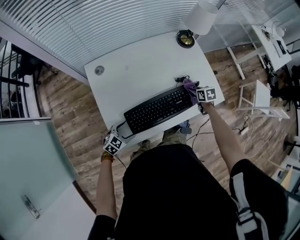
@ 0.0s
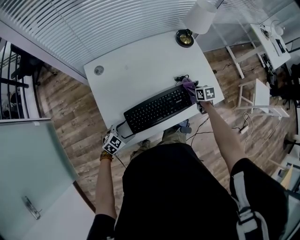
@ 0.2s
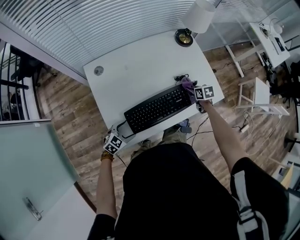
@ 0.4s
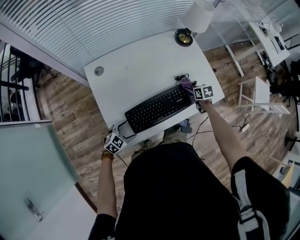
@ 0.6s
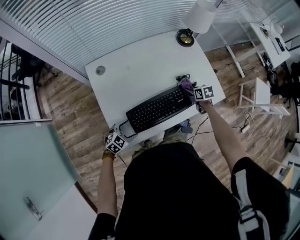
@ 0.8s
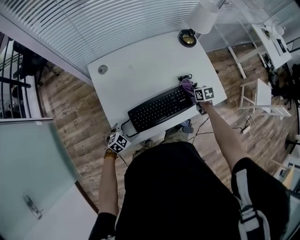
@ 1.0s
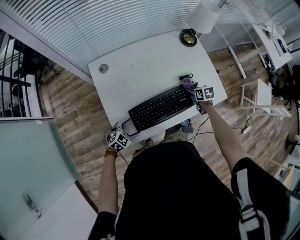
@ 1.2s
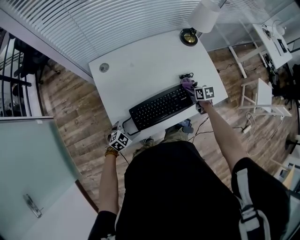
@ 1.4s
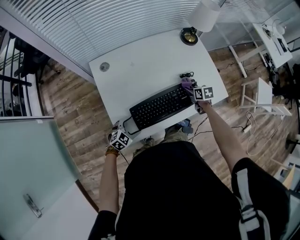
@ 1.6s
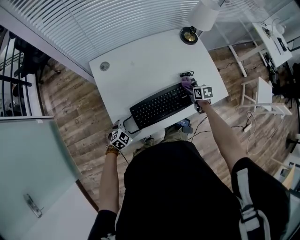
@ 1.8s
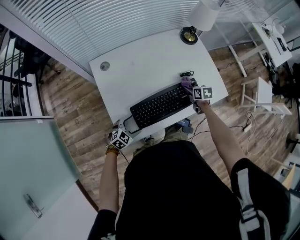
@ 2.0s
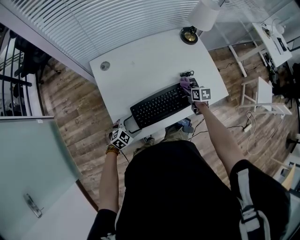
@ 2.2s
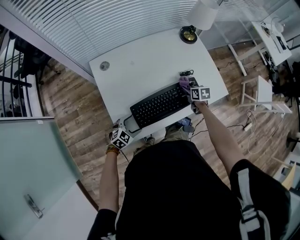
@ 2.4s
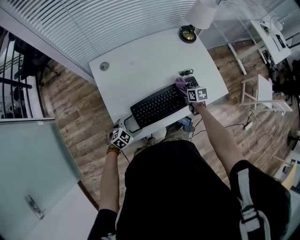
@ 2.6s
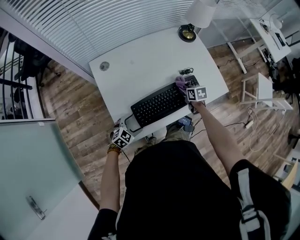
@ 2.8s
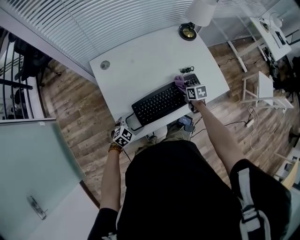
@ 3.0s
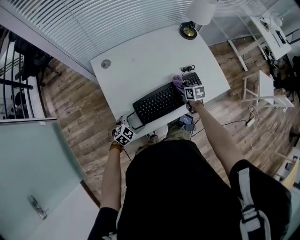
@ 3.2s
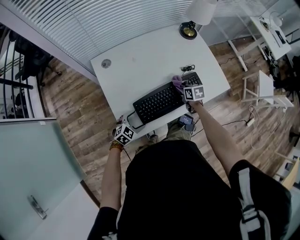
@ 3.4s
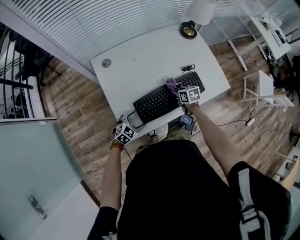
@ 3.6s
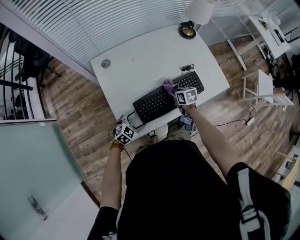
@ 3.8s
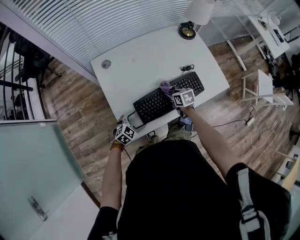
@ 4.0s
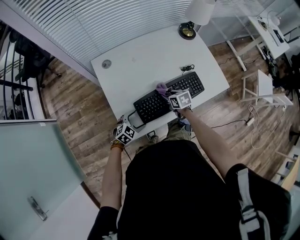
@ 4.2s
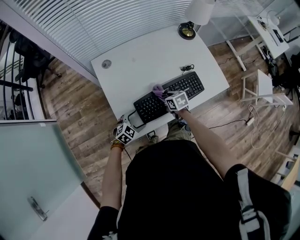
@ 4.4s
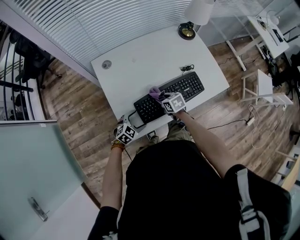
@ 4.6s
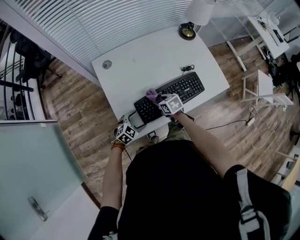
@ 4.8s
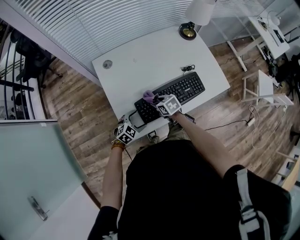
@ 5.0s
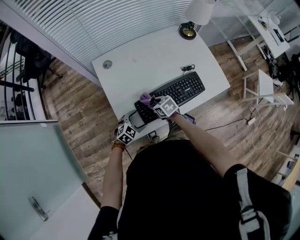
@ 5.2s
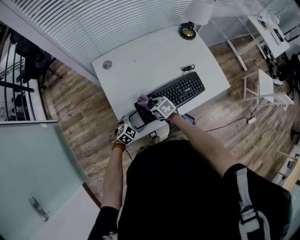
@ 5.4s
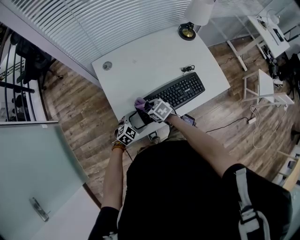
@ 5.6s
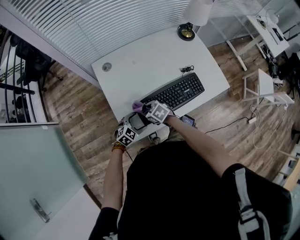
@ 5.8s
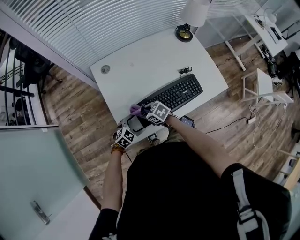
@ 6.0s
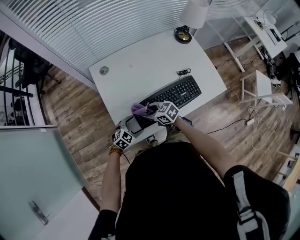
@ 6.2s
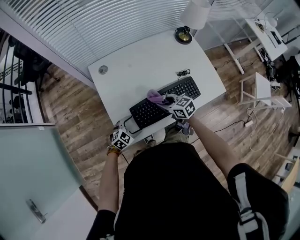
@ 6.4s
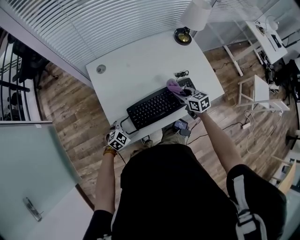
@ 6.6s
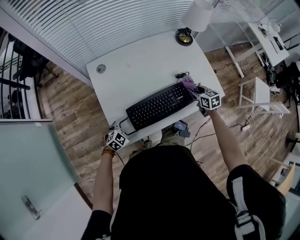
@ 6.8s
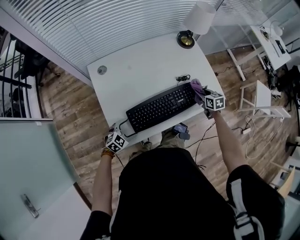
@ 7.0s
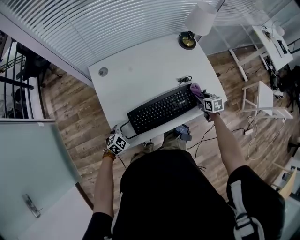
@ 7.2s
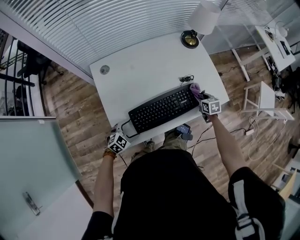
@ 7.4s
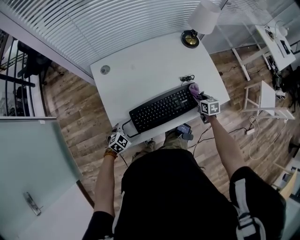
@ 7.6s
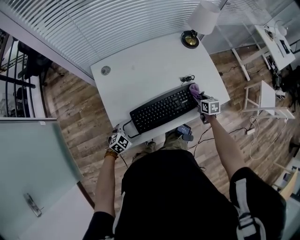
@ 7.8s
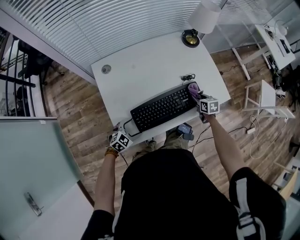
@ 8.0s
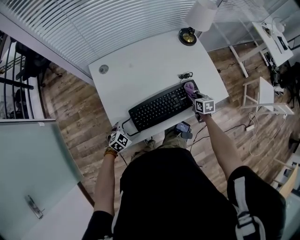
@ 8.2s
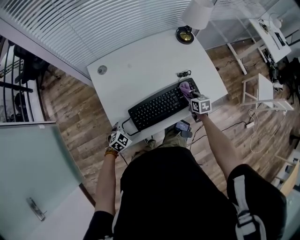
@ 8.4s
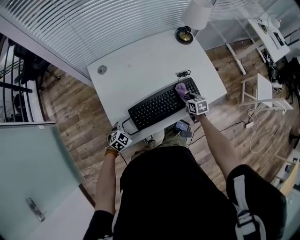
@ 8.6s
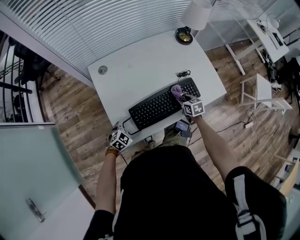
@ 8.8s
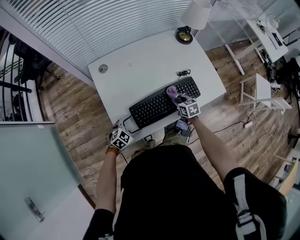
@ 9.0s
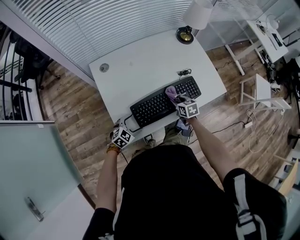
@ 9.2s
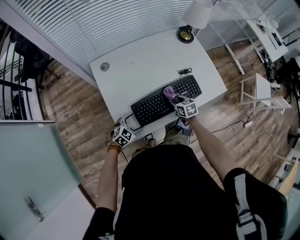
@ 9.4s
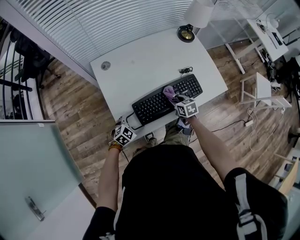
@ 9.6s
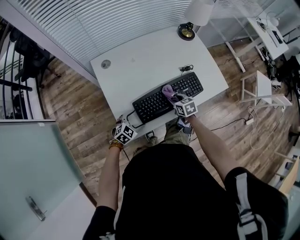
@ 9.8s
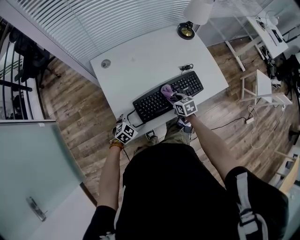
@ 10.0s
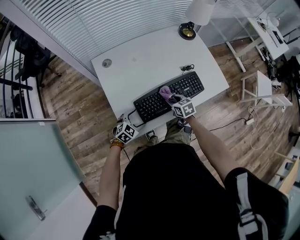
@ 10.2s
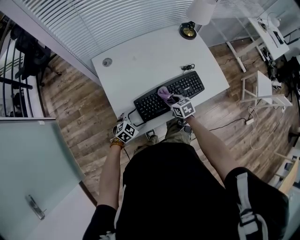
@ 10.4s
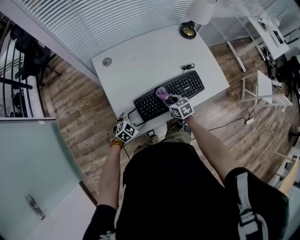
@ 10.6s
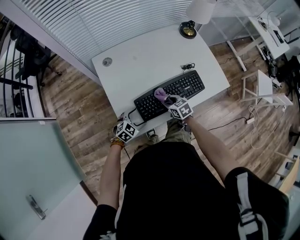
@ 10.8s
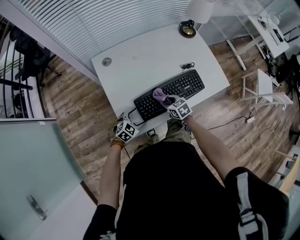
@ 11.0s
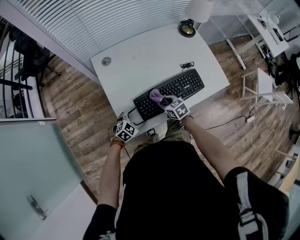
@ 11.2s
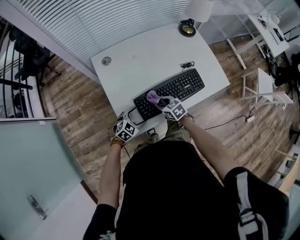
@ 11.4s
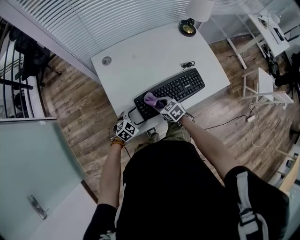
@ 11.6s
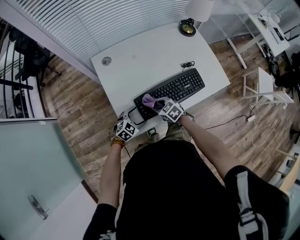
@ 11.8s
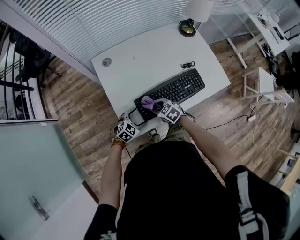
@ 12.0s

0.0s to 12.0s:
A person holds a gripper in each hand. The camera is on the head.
0.0s to 1.6s: The right gripper moves approximately 5 cm.
1.6s to 3.0s: The right gripper ends up about 5 cm from where it was.
3.0s to 4.4s: The right gripper travels to the left and backward by roughly 15 cm.
4.4s to 6.0s: The right gripper changes place by approximately 15 cm, and turns by roughly 30 degrees.
6.0s to 7.6s: The right gripper moves some 40 cm, and swivels approximately 40 degrees.
7.6s to 9.0s: The right gripper moves to the left and backward, roughly 15 cm.
9.0s to 10.4s: The right gripper moves to the left and backward, roughly 10 cm.
10.4s to 12.0s: The right gripper moves to the left and backward, some 10 cm, and swivels approximately 30 degrees.

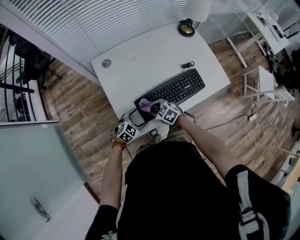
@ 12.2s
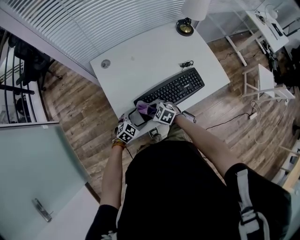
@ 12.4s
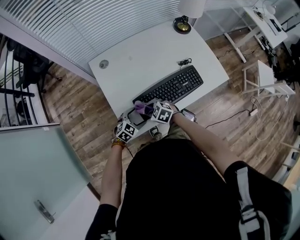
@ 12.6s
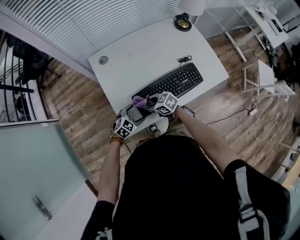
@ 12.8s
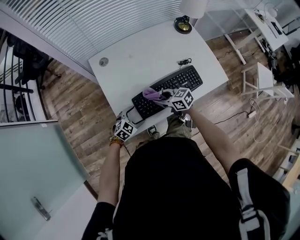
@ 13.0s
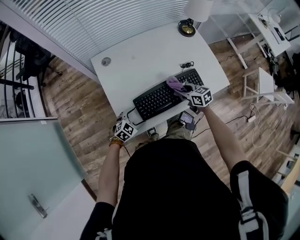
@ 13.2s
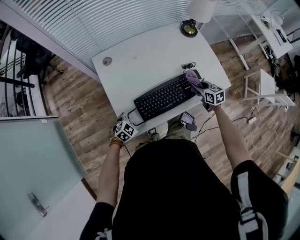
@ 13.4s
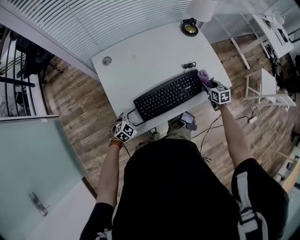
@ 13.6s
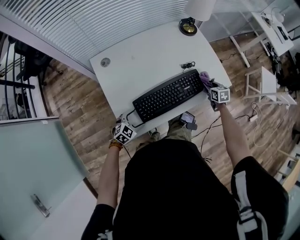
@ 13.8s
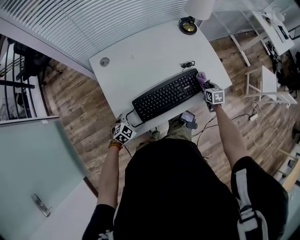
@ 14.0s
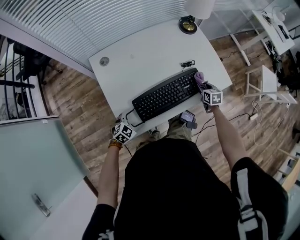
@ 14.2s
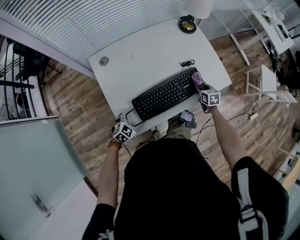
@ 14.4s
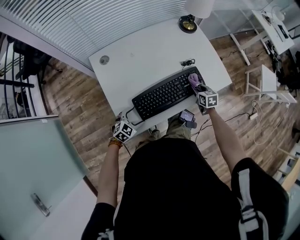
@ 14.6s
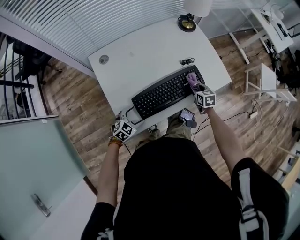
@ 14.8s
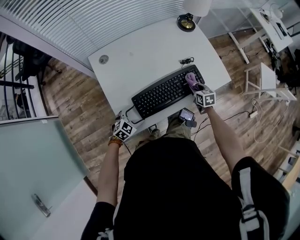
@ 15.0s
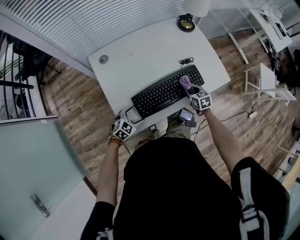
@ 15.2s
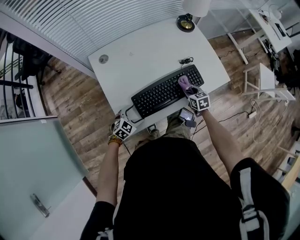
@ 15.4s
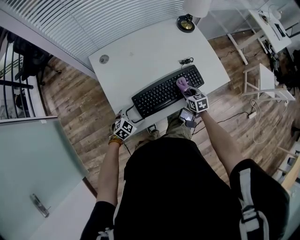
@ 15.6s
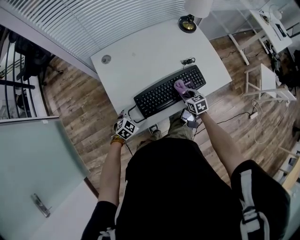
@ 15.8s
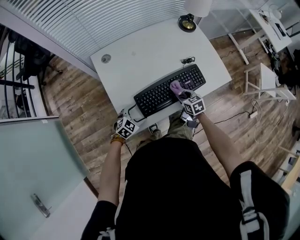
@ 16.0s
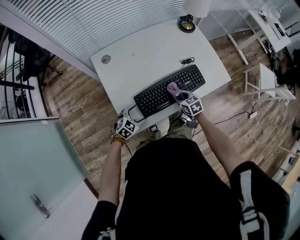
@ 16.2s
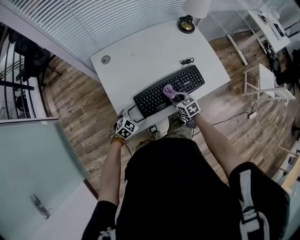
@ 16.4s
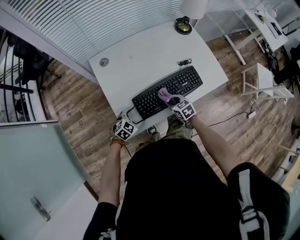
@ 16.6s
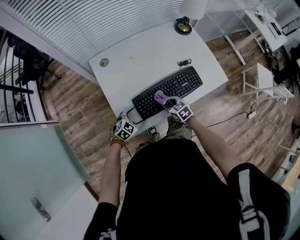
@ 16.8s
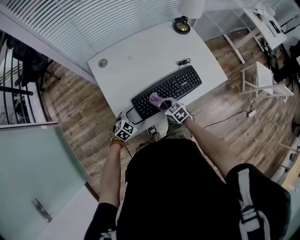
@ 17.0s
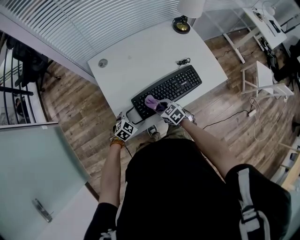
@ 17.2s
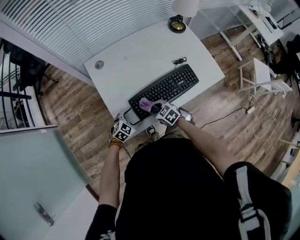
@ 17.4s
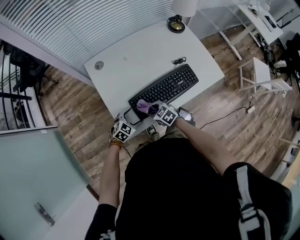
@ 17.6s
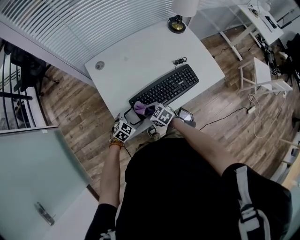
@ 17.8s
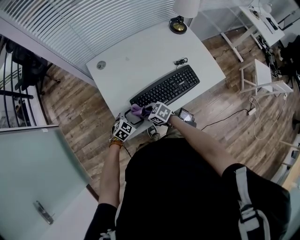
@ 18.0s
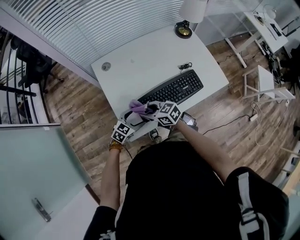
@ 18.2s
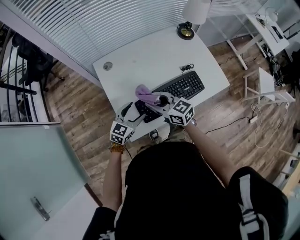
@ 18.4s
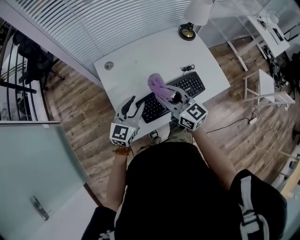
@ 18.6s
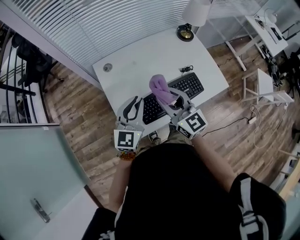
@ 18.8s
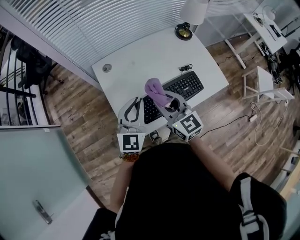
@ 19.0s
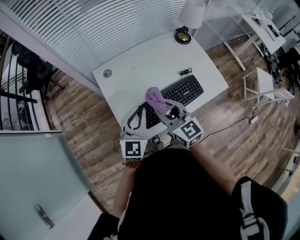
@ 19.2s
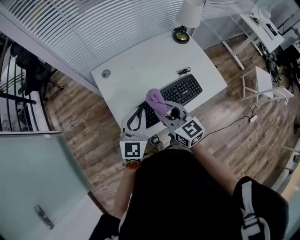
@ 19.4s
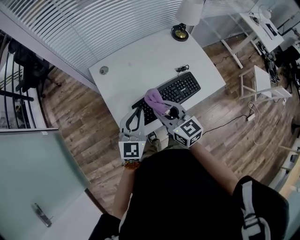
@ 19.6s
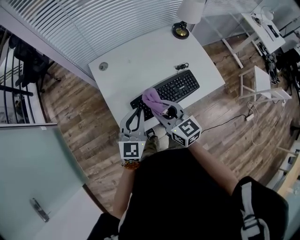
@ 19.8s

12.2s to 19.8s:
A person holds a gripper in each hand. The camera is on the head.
12.2s to 13.8s: The right gripper ends up approximately 40 cm from where it was, and rotates some 50 degrees.
13.8s to 15.2s: The right gripper moves to the left and backward, roughly 15 cm.
15.2s to 16.8s: The right gripper heads to the left and backward, covering approximately 15 cm.
16.8s to 18.2s: The right gripper shifts by about 15 cm, and turns by roughly 30 degrees, while the left gripper heads upward, covering approximately 5 cm.
18.2s to 19.8s: The two grippers go about 20 cm upward. The left gripper changes its angle by approximately 40 degrees, and closes. Meanwhile the right gripper turns by some 30 degrees.

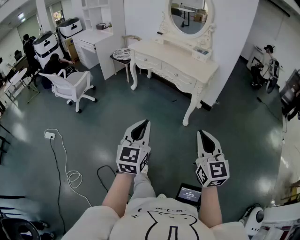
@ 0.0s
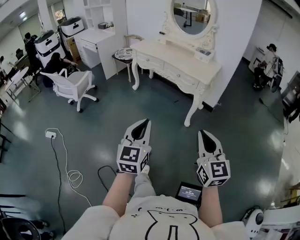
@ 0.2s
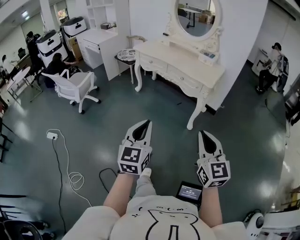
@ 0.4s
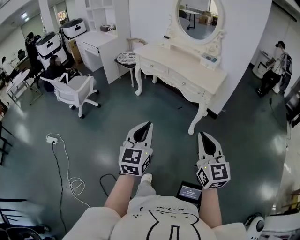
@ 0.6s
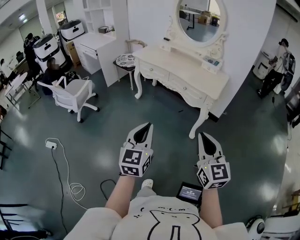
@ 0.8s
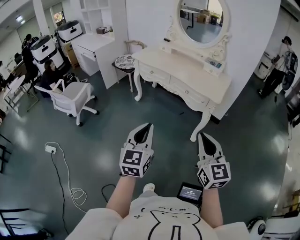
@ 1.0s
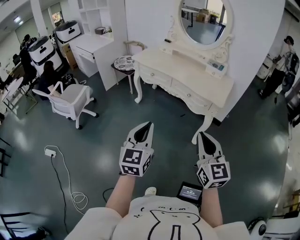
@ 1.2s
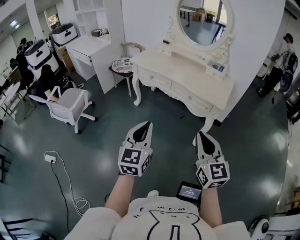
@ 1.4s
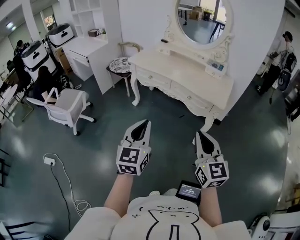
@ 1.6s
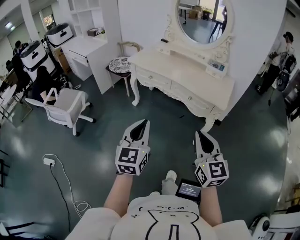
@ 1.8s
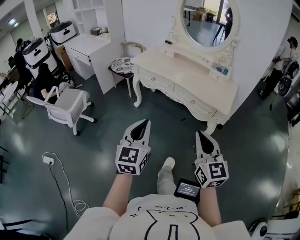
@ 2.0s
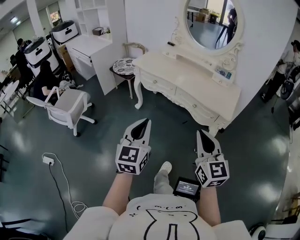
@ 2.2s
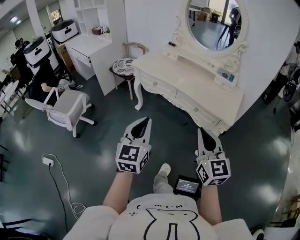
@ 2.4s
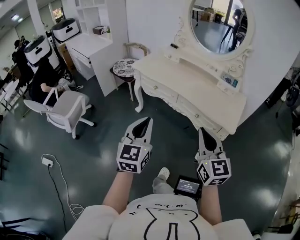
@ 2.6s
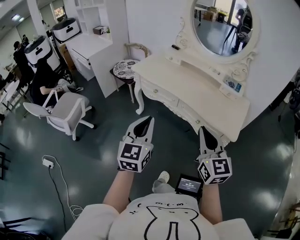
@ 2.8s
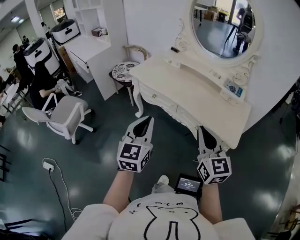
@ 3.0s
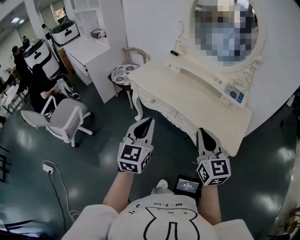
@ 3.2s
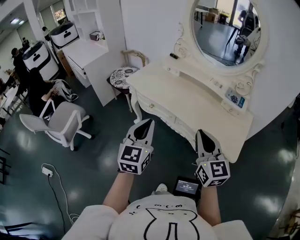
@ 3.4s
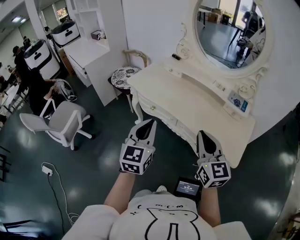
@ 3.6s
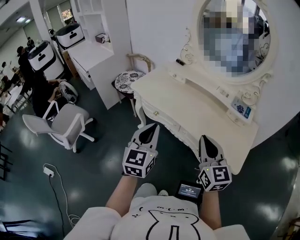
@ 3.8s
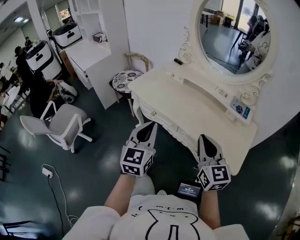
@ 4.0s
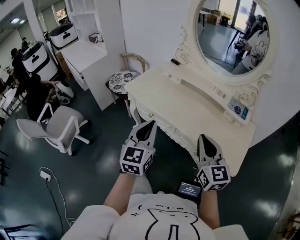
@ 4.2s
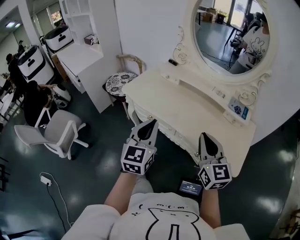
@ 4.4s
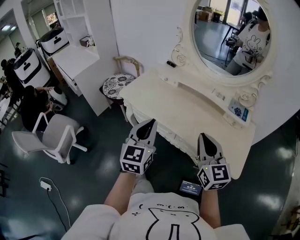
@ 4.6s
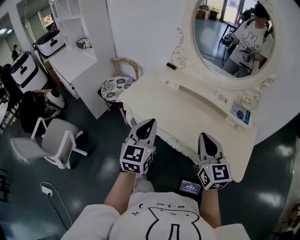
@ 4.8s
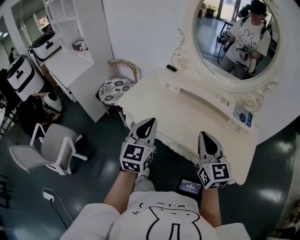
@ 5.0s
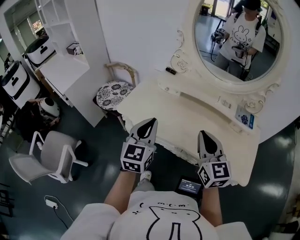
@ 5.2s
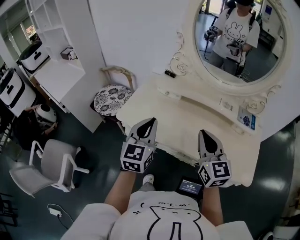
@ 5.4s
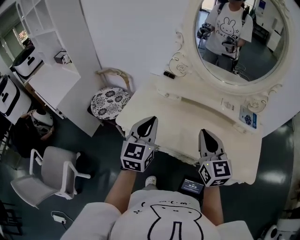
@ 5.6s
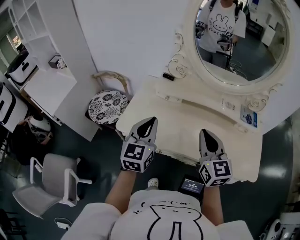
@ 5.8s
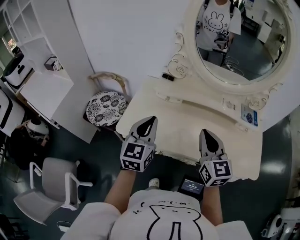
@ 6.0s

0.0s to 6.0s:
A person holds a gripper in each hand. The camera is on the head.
0.0s to 1.6s: The left gripper is displaced forward by about 30 cm, while the right gripper goes approximately 30 cm forward and to the left.
1.6s to 3.0s: Both grippers travel together forward, approximately 30 cm.
3.0s to 4.4s: Both grippers travel together forward, roughly 15 cm.
4.4s to 6.0s: Both grippers move forward and to the left, roughly 25 cm.
